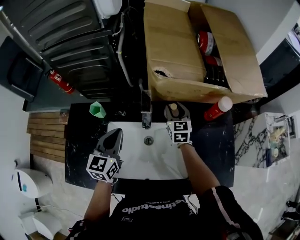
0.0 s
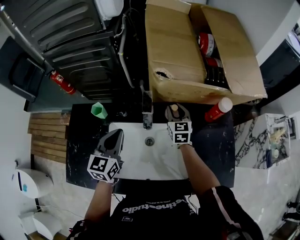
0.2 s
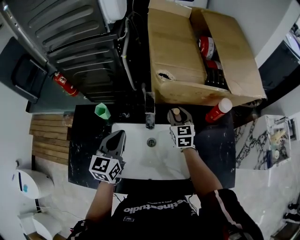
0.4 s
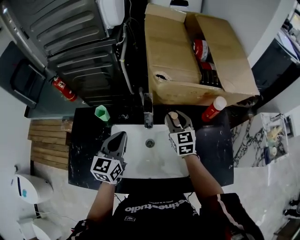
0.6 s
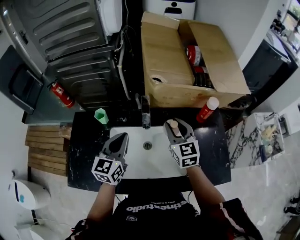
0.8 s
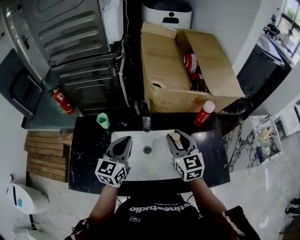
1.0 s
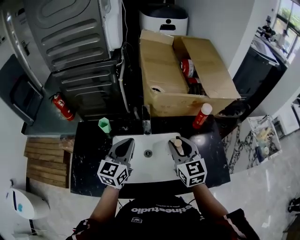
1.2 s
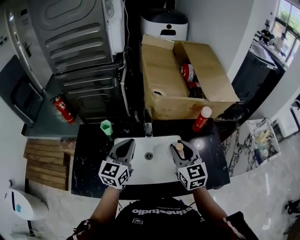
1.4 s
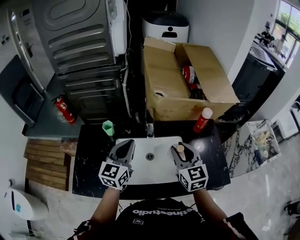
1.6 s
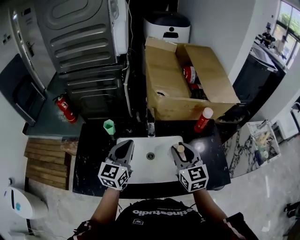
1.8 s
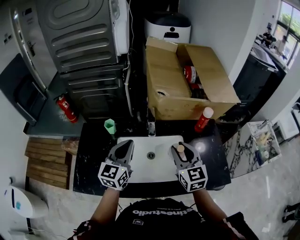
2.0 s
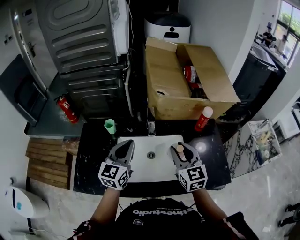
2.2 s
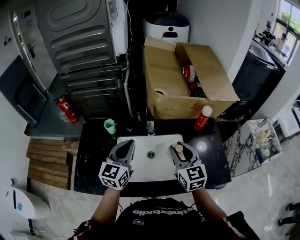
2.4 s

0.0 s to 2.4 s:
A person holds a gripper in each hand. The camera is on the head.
0.0 to 1.2 s: The right gripper goes roughly 30 cm backward and upward. The left gripper shifts approximately 10 cm upward and backward.
1.2 to 2.4 s: The grippers make only small movements.

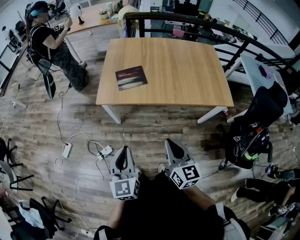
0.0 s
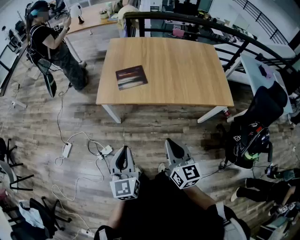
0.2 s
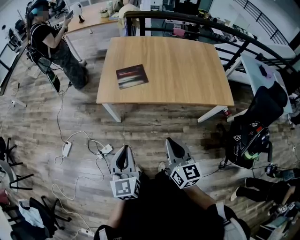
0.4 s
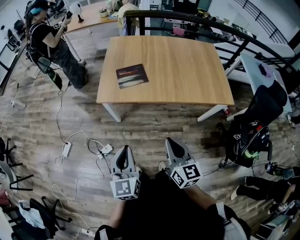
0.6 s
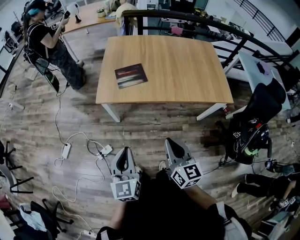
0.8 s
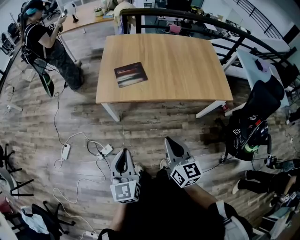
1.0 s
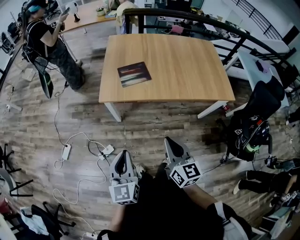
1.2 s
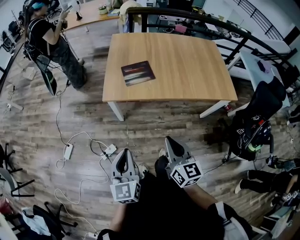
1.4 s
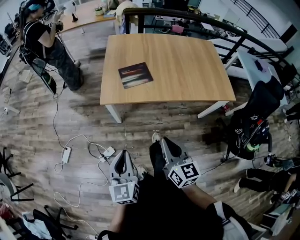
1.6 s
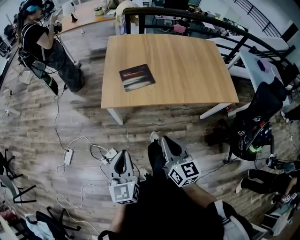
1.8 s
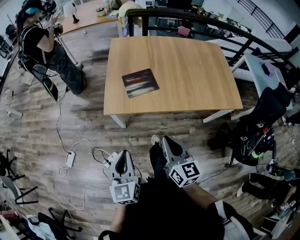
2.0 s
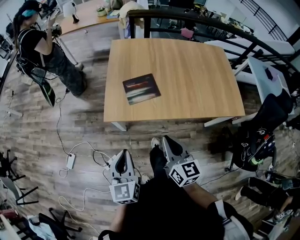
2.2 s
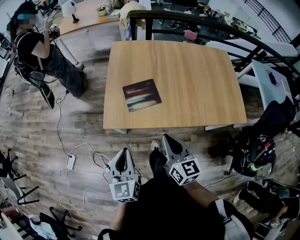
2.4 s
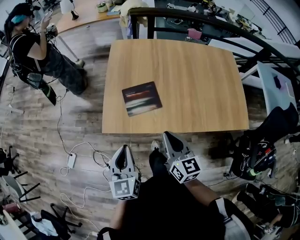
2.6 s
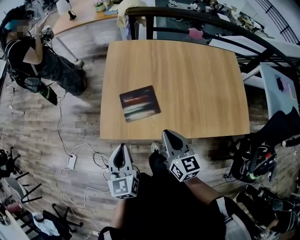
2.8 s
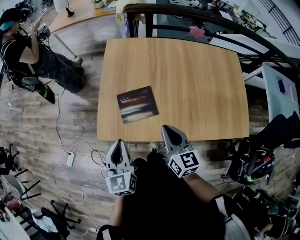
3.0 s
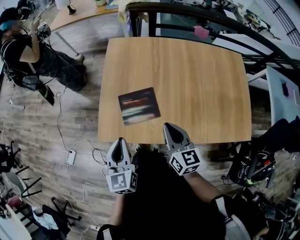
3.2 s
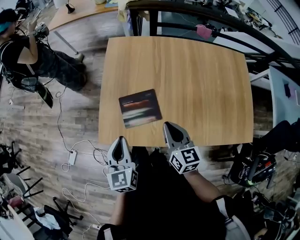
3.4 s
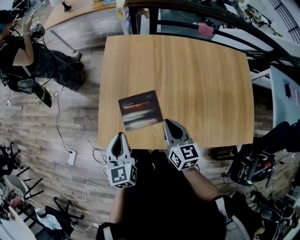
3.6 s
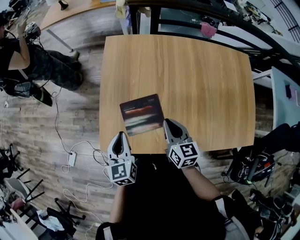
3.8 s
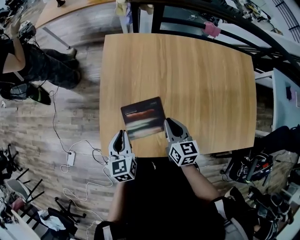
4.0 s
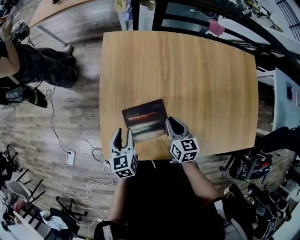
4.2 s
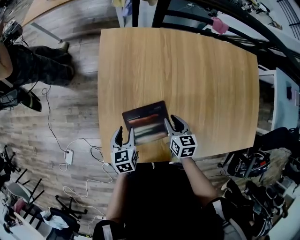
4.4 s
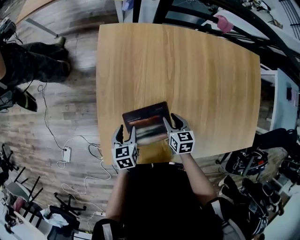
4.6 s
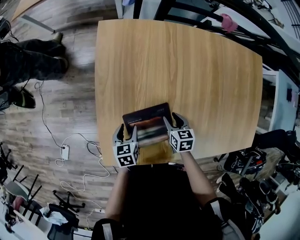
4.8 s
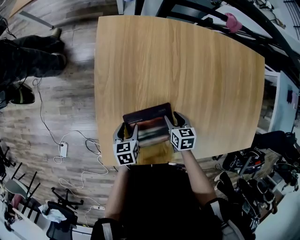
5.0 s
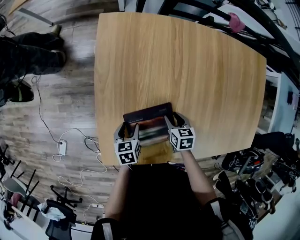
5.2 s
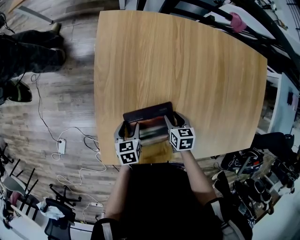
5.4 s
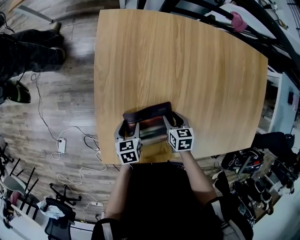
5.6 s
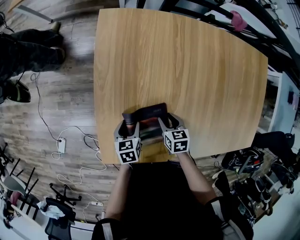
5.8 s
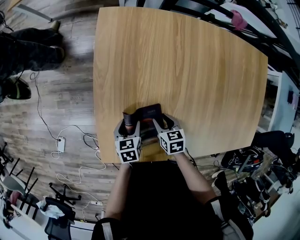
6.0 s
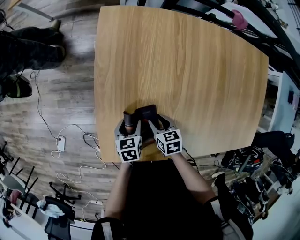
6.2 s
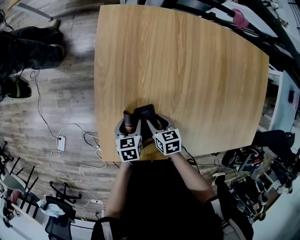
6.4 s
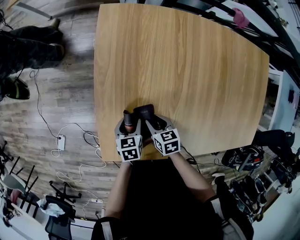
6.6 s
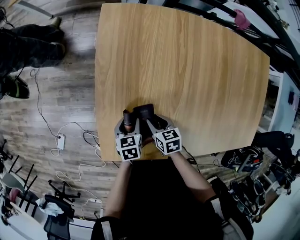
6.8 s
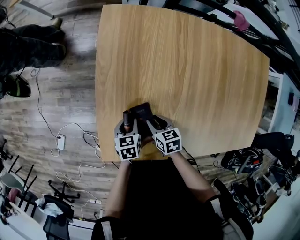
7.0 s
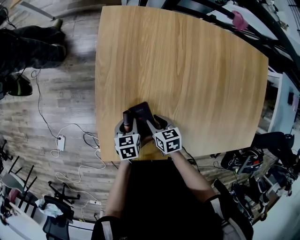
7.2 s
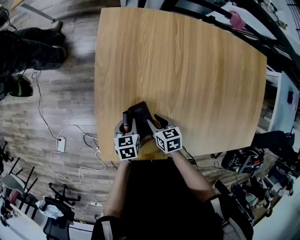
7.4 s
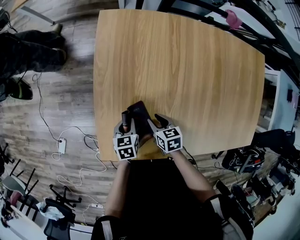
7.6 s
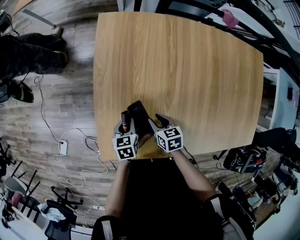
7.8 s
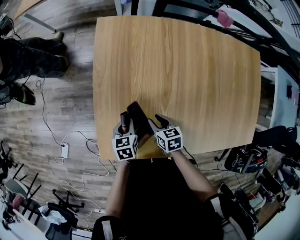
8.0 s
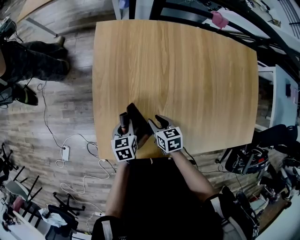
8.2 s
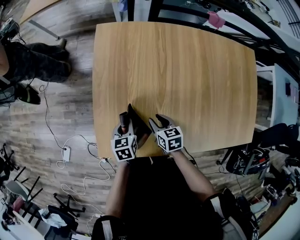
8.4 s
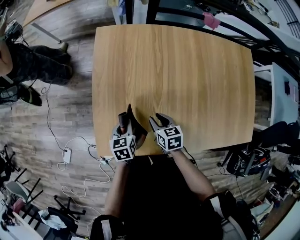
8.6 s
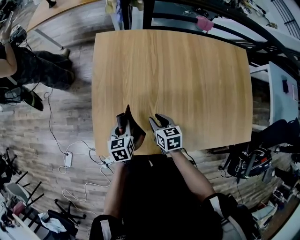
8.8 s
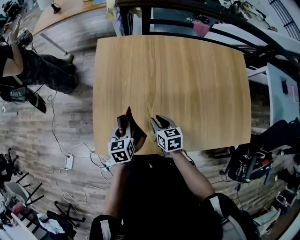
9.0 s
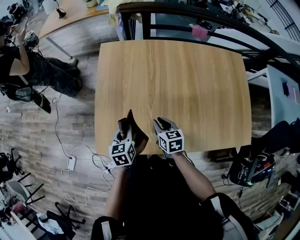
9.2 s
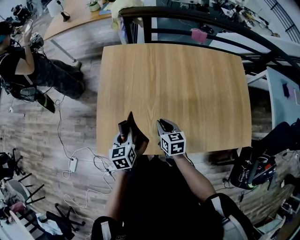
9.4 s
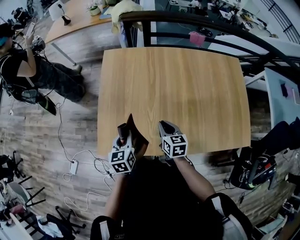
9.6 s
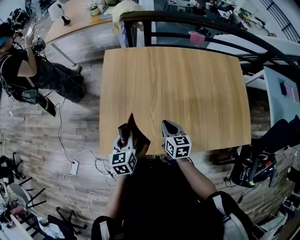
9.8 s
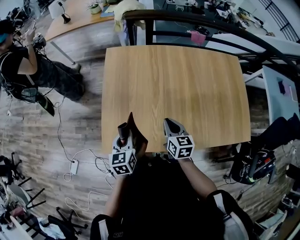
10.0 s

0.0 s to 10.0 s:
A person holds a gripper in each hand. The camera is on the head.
0.0 to 1.4 s: The grippers both shift to the left by some 10 cm.
1.4 to 2.8 s: Both grippers move forward, approximately 35 cm.
2.8 to 4.2 s: Both grippers travel together forward and downward, roughly 30 cm. The right gripper turns by approximately 20 degrees. Meanwhile the left gripper rotates approximately 20 degrees, and opens its fingers.
4.2 to 5.8 s: Both grippers move downward, about 15 cm. The left gripper rotates approximately 20 degrees. Meanwhile the right gripper rotates some 30 degrees, and opens.
5.8 to 7.2 s: The right gripper heads to the left, covering roughly 5 cm. The left gripper closes.
7.2 to 8.6 s: The left gripper heads upward, covering approximately 10 cm; the right gripper is displaced upward and to the right by some 10 cm.
8.6 to 10.0 s: The two grippers go roughly 15 cm upward and backward. The right gripper turns by about 20 degrees, and closes its fingers.

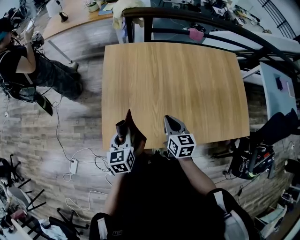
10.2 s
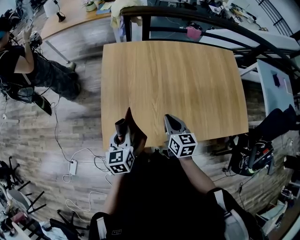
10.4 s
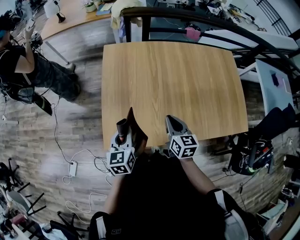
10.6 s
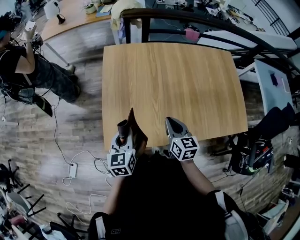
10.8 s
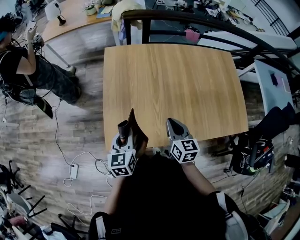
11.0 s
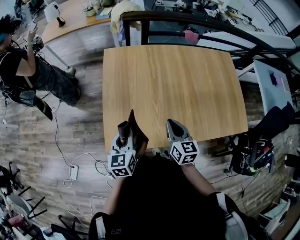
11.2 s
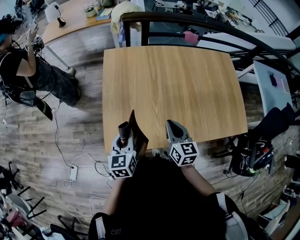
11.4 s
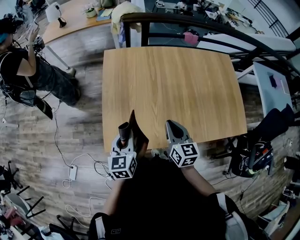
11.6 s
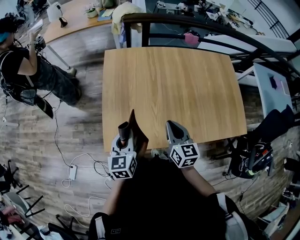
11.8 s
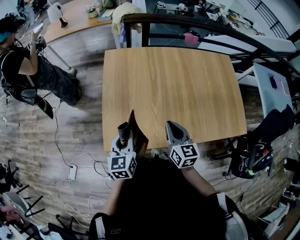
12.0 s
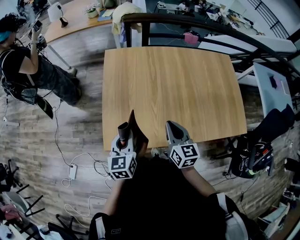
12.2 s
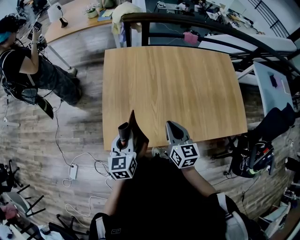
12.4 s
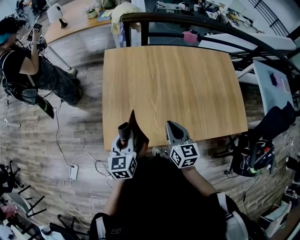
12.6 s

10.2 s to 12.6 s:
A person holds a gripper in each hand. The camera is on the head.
10.2 to 11.4 s: The right gripper changes place by approximately 5 cm.
11.4 to 12.6 s: There are only small adjustments of the grippers.

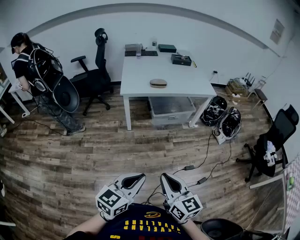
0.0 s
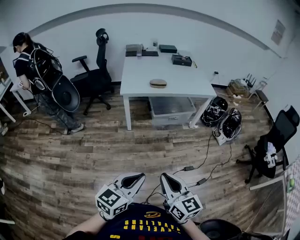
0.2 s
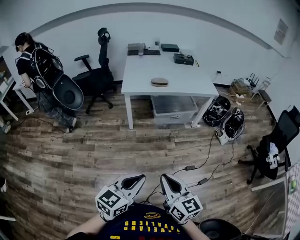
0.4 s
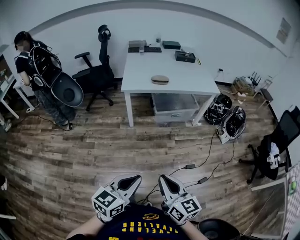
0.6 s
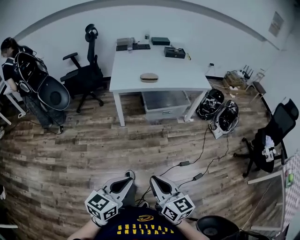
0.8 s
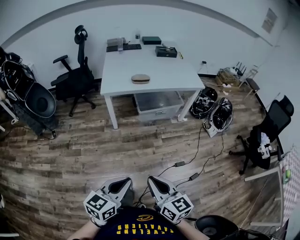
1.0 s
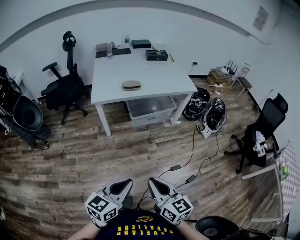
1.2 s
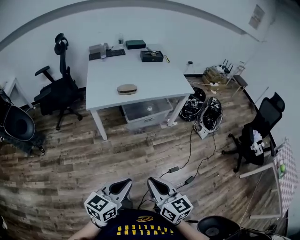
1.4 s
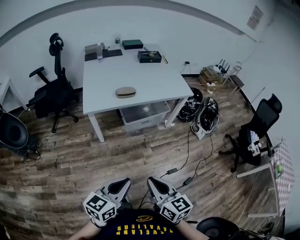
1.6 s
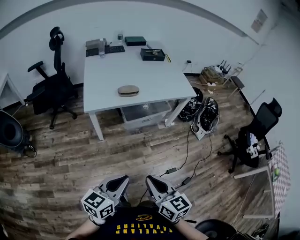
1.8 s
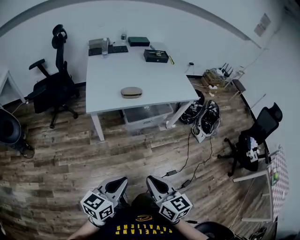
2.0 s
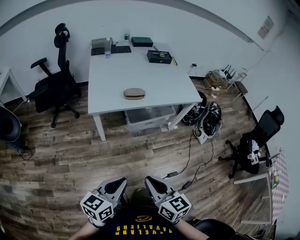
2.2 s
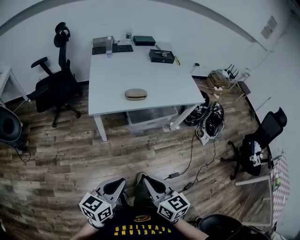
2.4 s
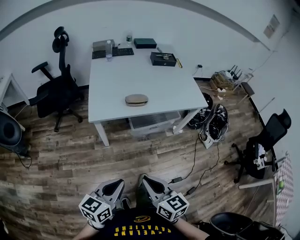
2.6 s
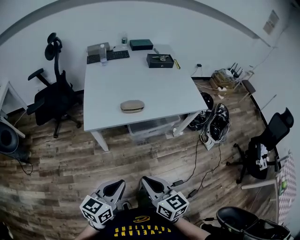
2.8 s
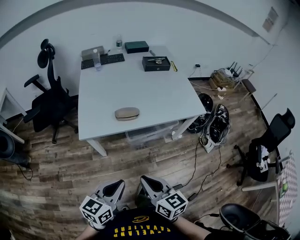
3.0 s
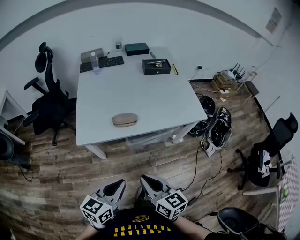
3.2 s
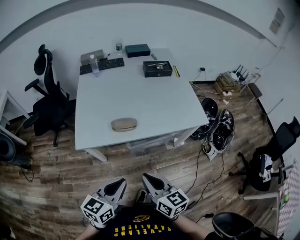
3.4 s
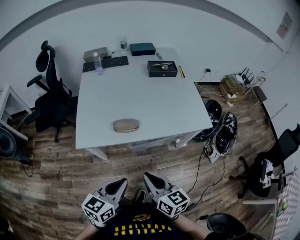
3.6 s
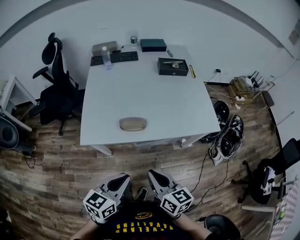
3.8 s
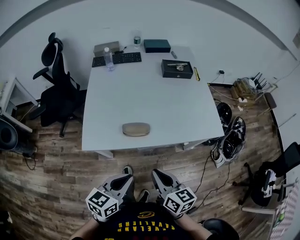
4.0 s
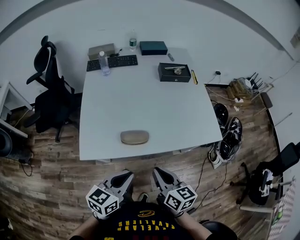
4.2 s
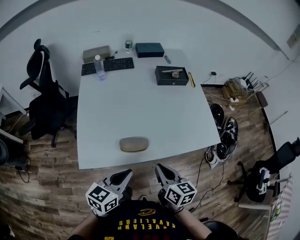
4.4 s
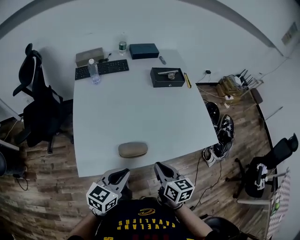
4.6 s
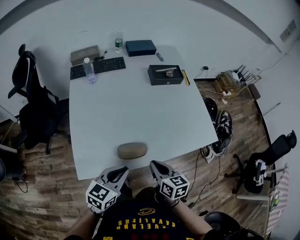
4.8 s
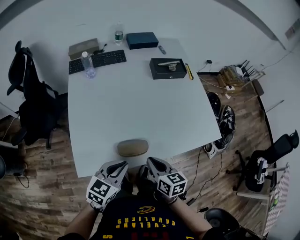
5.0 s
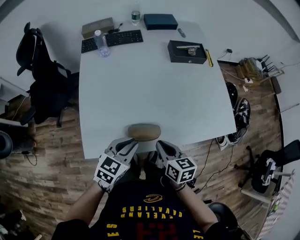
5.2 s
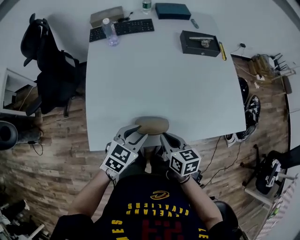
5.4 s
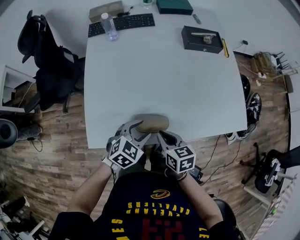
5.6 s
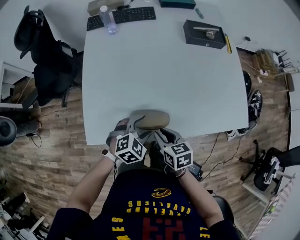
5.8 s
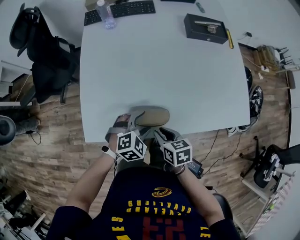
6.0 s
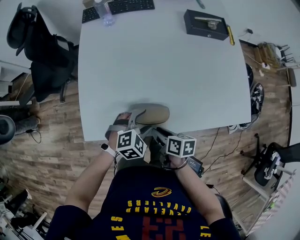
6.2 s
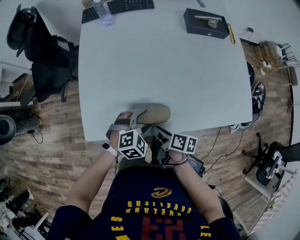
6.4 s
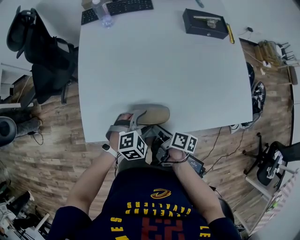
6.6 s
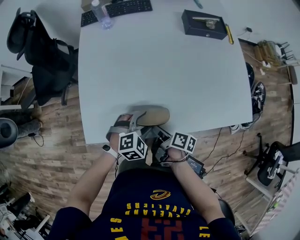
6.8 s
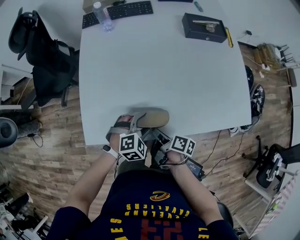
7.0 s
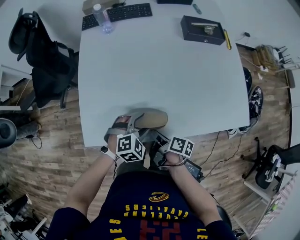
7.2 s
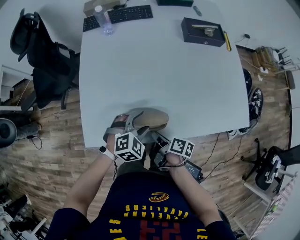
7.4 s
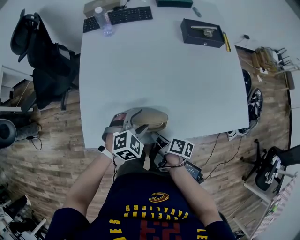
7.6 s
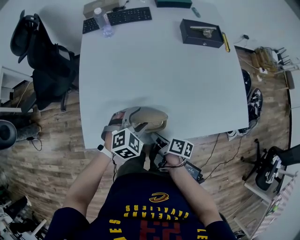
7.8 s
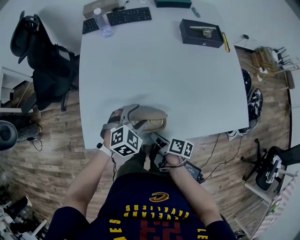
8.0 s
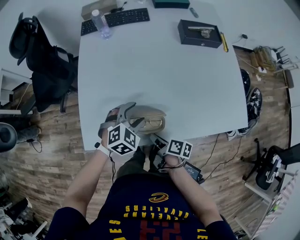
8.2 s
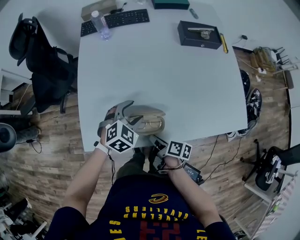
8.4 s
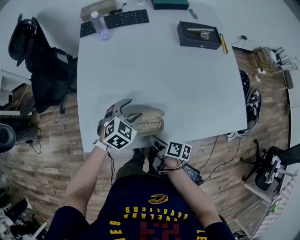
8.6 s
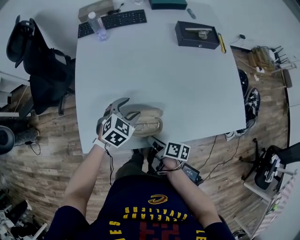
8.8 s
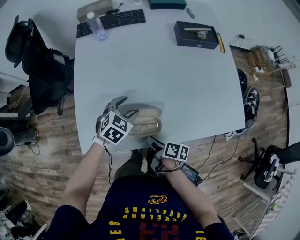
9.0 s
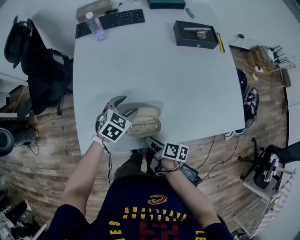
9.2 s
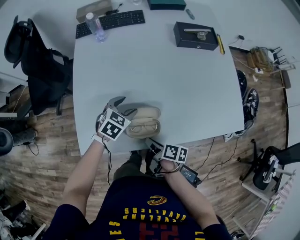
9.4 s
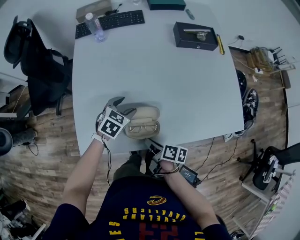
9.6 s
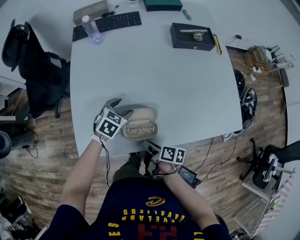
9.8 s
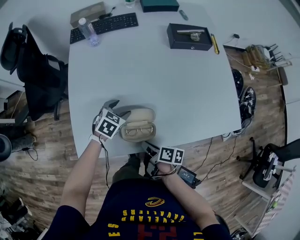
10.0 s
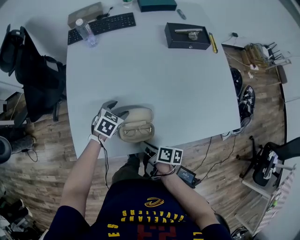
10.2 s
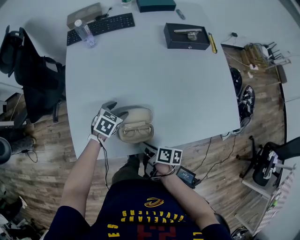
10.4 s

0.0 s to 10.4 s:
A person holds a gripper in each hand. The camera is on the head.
0.0 to 1.4 s: The two grippers go roughly 15 cm forward.
1.4 to 3.0 s: The two grippers go approximately 25 cm forward.
3.0 to 4.4 s: The grippers both shift forward by some 30 cm.
4.4 to 6.0 s: The left gripper goes roughly 20 cm downward and forward, points its fingers roughly 40 degrees further downward, and opens up. The right gripper goes some 15 cm downward, changes its angle by some 30 degrees, and opens.
6.0 to 7.4 s: The right gripper rotates around the line of its fingers by approximately 50 degrees, clockwise from behind.
7.4 to 9.0 s: The left gripper travels forward by approximately 10 cm, and rotates approximately 20 degrees.
9.0 to 10.4 s: The left gripper is displaced downward by some 5 cm.
